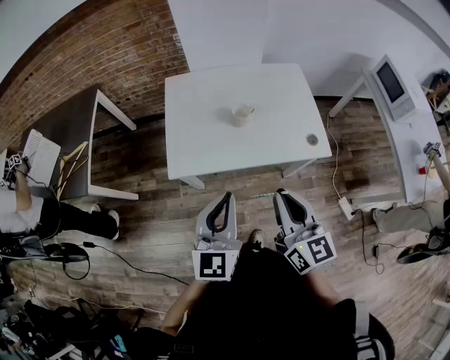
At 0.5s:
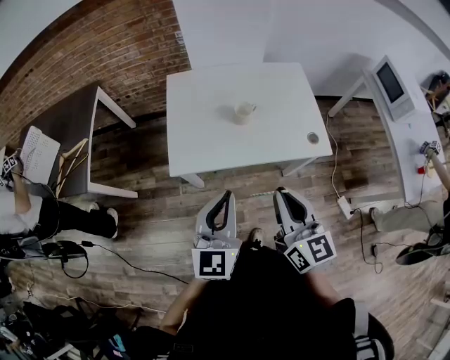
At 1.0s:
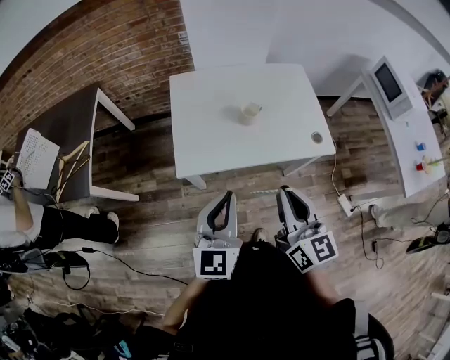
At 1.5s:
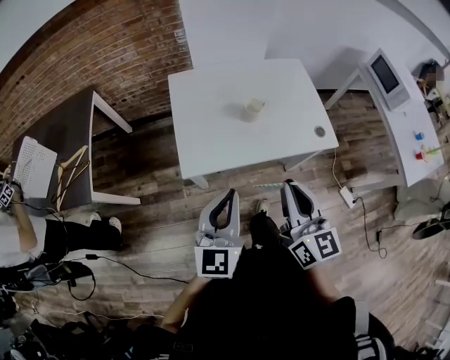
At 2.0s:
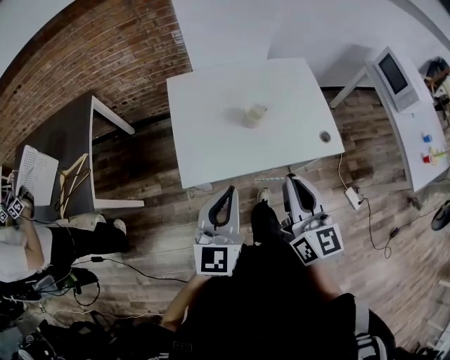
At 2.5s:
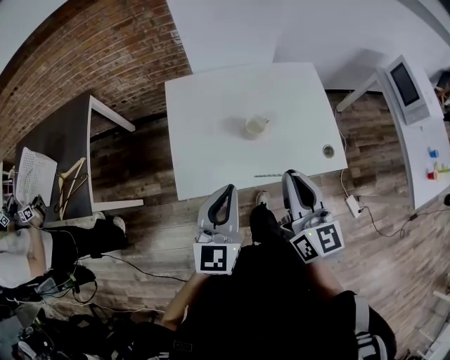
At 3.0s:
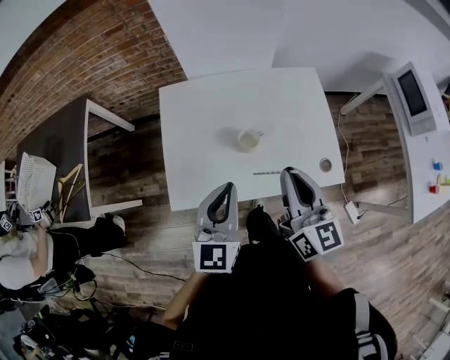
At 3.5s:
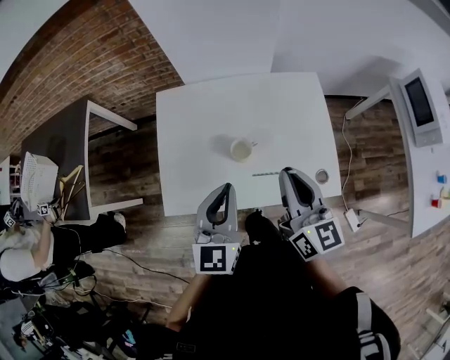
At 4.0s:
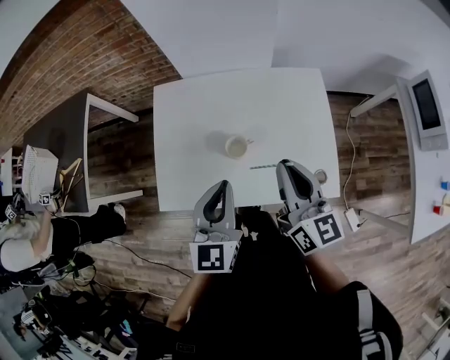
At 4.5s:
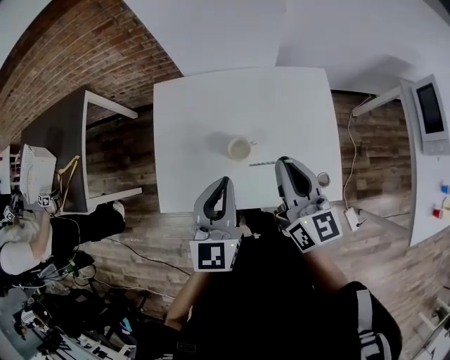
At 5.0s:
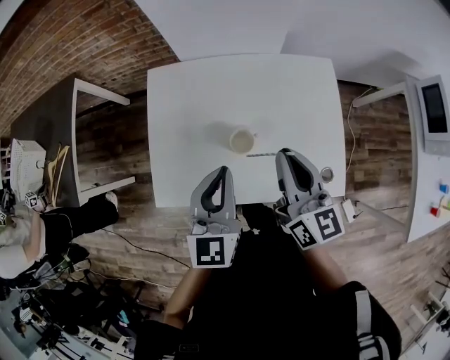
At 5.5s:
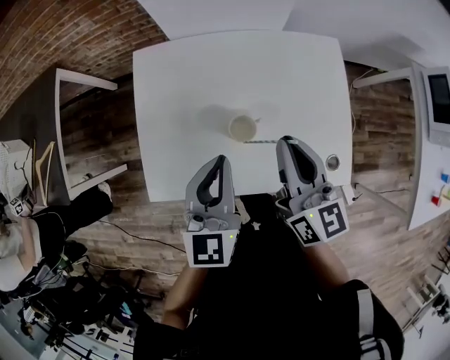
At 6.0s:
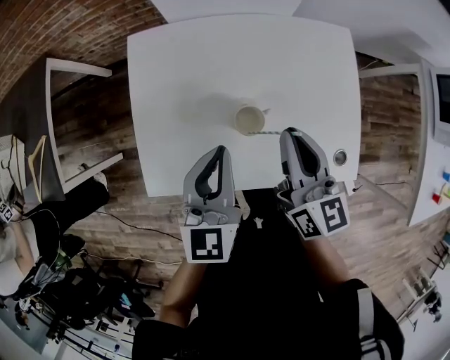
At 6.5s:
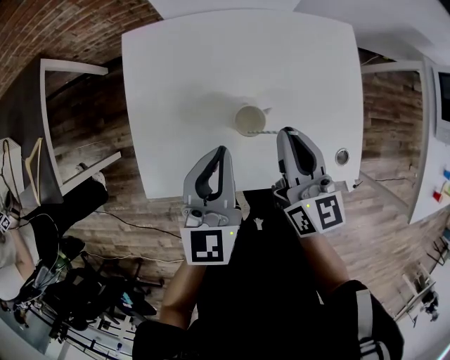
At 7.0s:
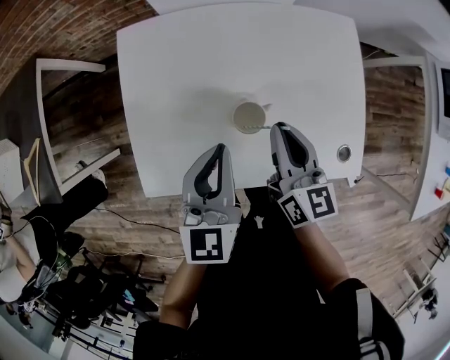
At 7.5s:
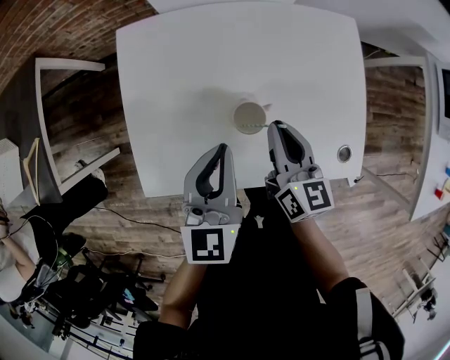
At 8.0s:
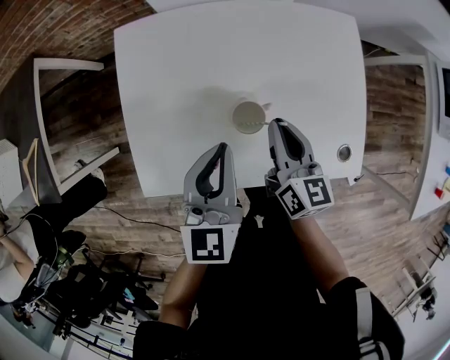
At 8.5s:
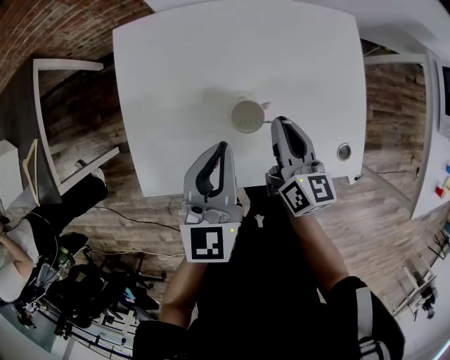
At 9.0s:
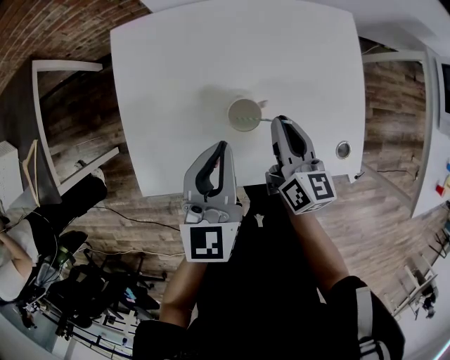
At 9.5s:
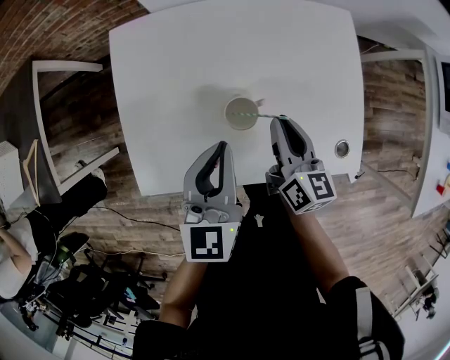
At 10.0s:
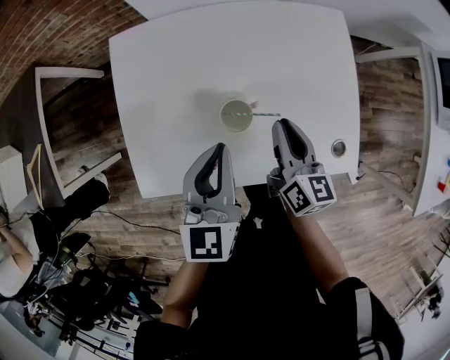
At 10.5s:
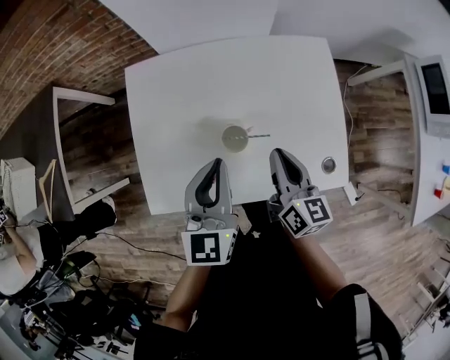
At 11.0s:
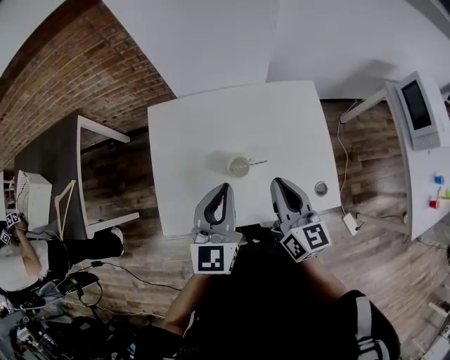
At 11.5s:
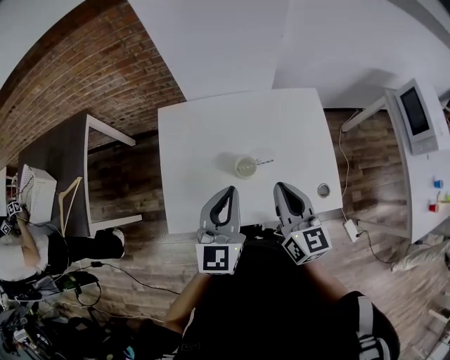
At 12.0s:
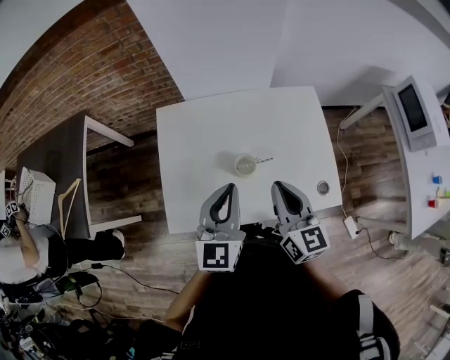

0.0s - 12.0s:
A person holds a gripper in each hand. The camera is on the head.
0.0s - 2.0s: The left gripper heads to the left and forward, covering approximately 10 cm; the right gripper moves forward and to the left, about 10 cm.
2.0s - 4.0s: Both grippers travel together forward and to the right, roughly 25 cm.
4.0s - 6.0s: Both grippers move downward, forward and to the left, some 15 cm.
6.0s - 8.0s: The right gripper shifts roughly 10 cm downward.
8.0s - 10.0s: The grippers stay close to where they were, moving slightly.
10.0s - 12.0s: The left gripper goes some 10 cm upward and backward. The right gripper heads upward and backward, covering about 20 cm.

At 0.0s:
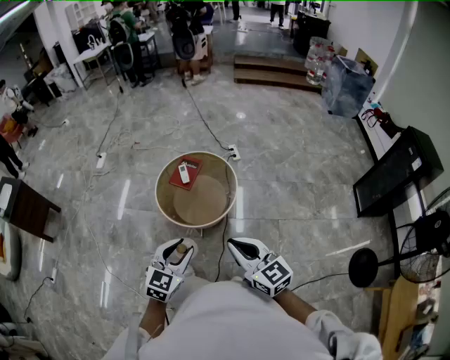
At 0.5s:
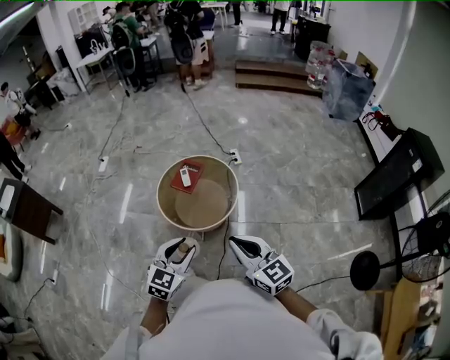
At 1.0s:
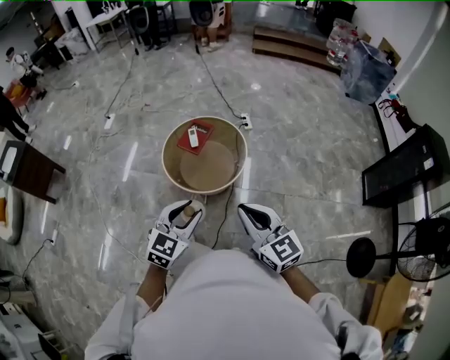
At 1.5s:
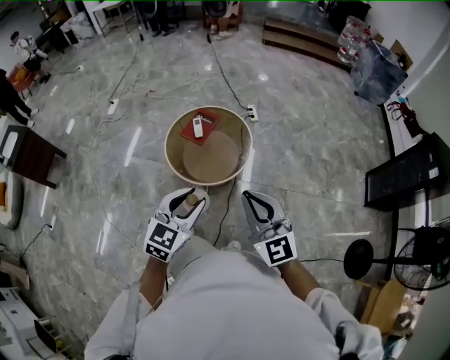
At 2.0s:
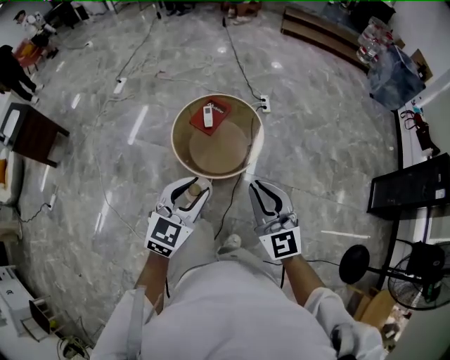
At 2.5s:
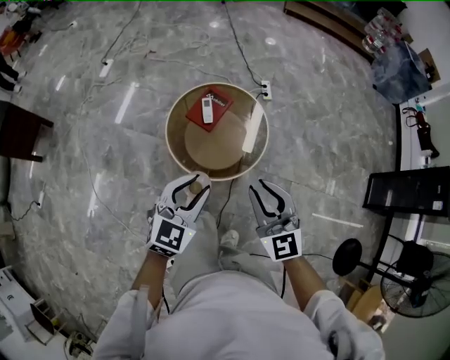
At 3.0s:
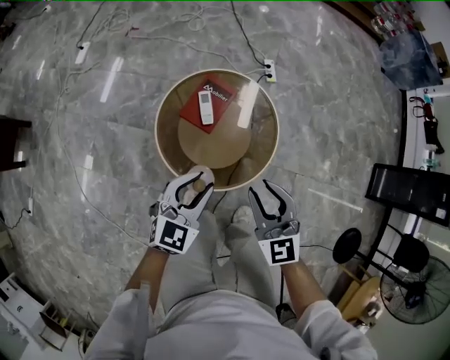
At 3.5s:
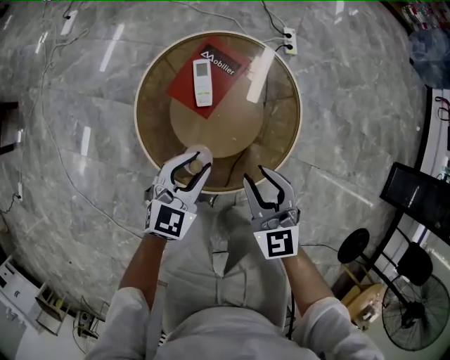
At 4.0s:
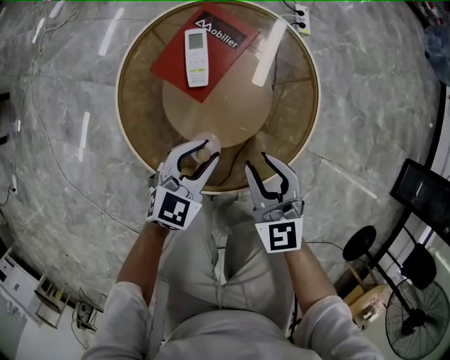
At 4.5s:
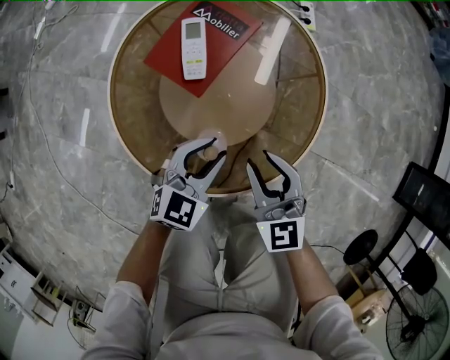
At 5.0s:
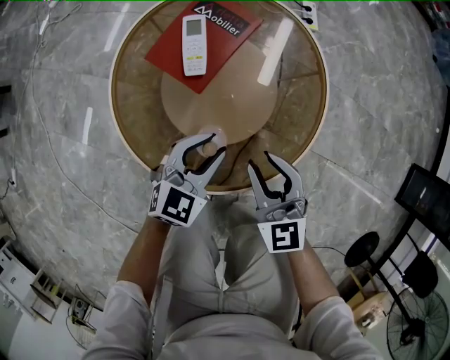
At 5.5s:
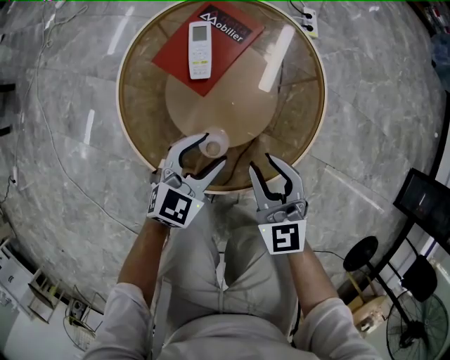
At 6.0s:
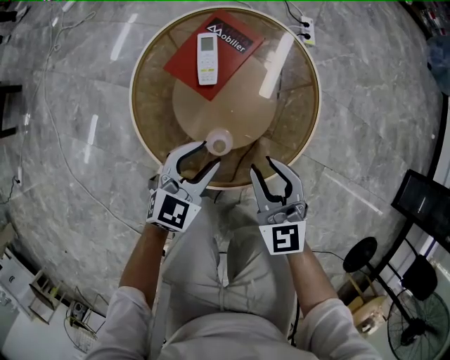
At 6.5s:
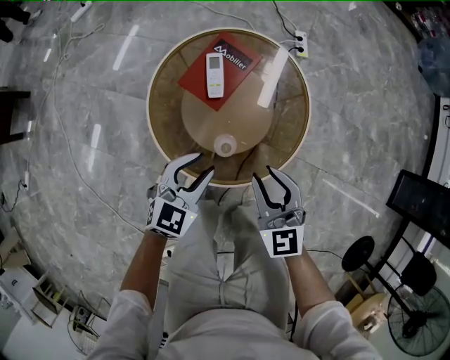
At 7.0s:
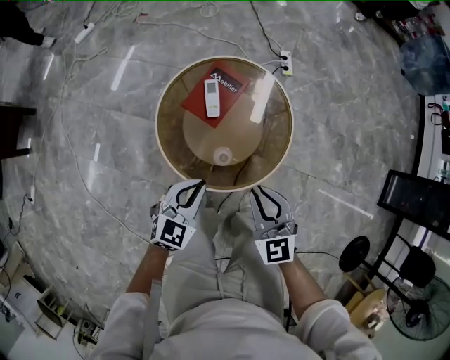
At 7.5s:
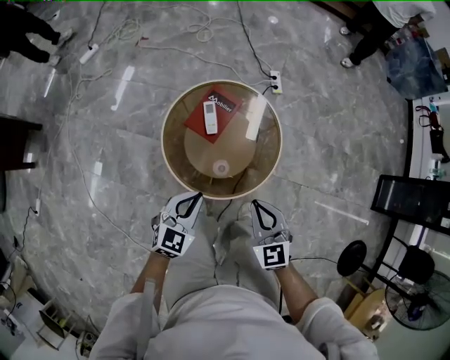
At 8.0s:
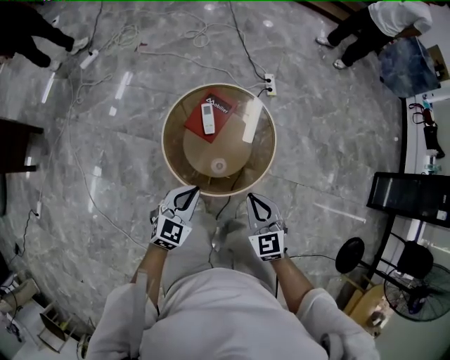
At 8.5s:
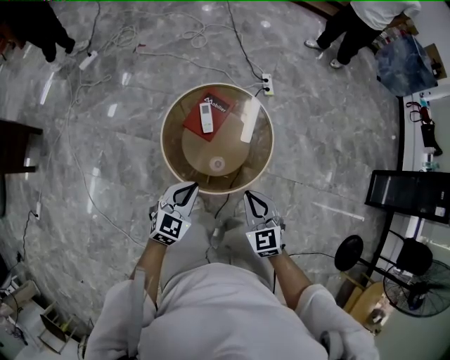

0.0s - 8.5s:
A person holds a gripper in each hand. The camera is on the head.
0.0s - 2.0s: Both grippers move forward, approximately 10 cm. The right gripper changes its angle by some 20 degrees.
2.0s - 4.0s: Both grippers travel together downward and forward, about 60 cm. The right gripper turns by approximately 20 degrees, and opens up.
4.0s - 6.5s: The grippers both shift upward by approximately 10 cm. The left gripper opens, then closes again.
6.5s - 8.5s: The right gripper is displaced upward and backward by roughly 15 cm, and closes up. Meanwhile the left gripper is displaced upward by roughly 20 cm, and closes up.

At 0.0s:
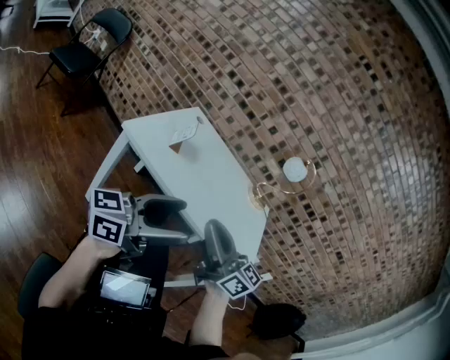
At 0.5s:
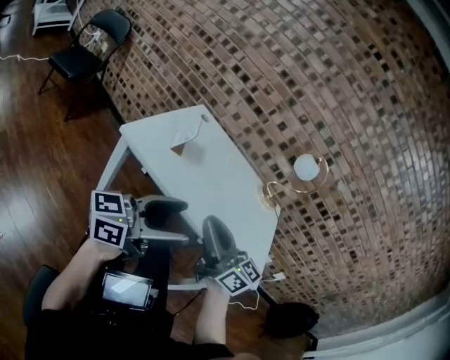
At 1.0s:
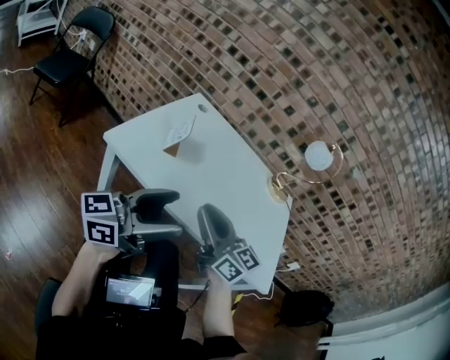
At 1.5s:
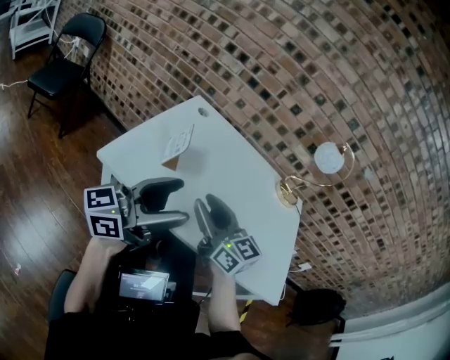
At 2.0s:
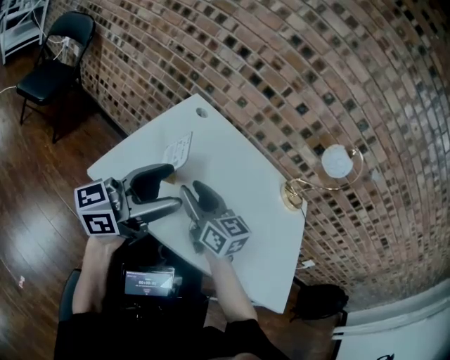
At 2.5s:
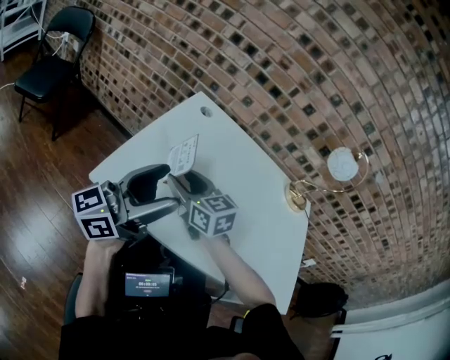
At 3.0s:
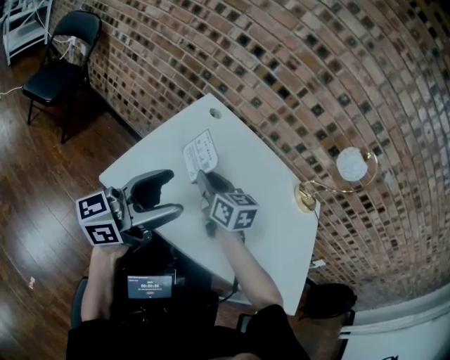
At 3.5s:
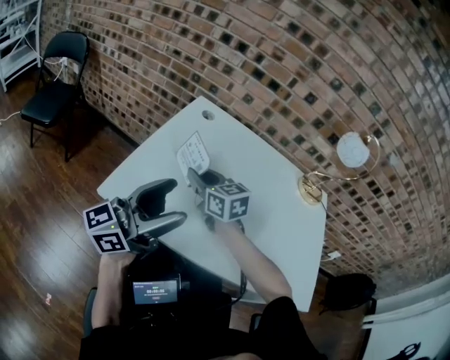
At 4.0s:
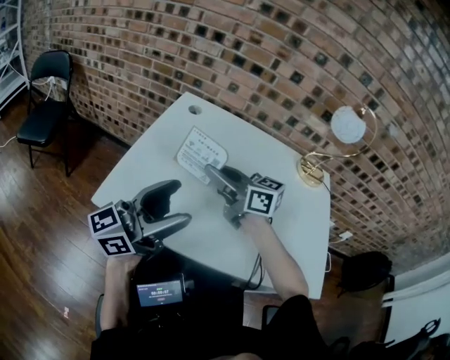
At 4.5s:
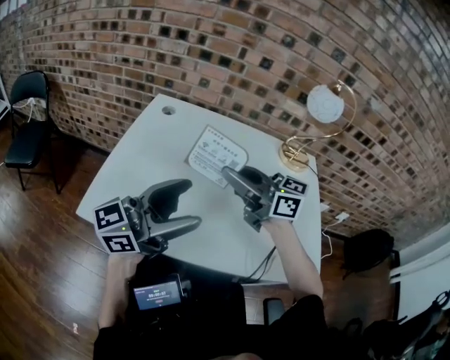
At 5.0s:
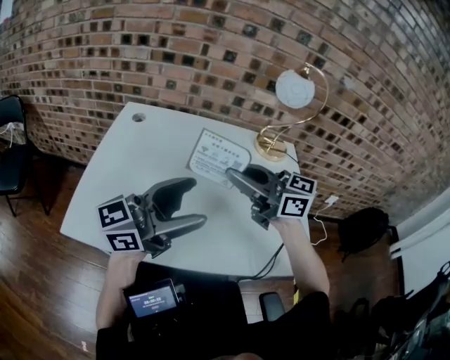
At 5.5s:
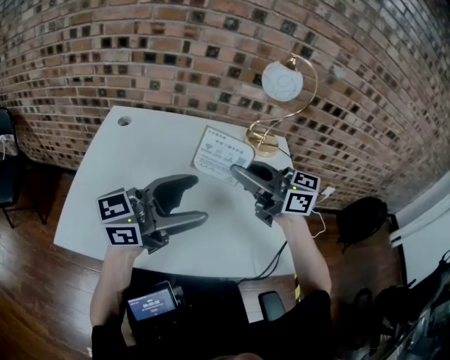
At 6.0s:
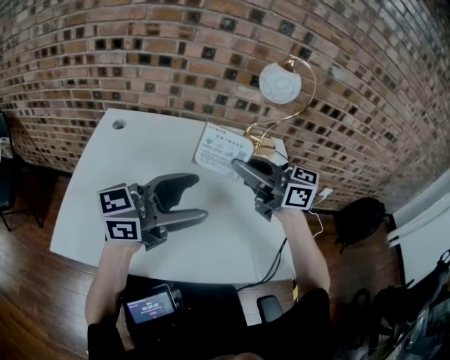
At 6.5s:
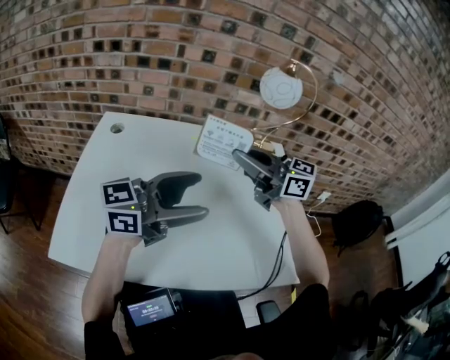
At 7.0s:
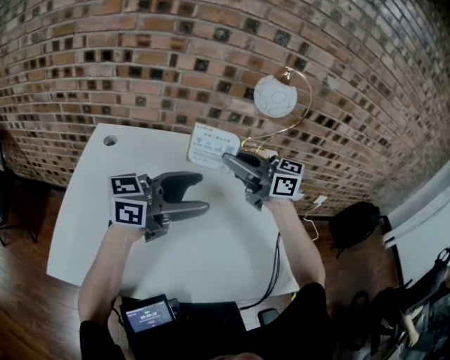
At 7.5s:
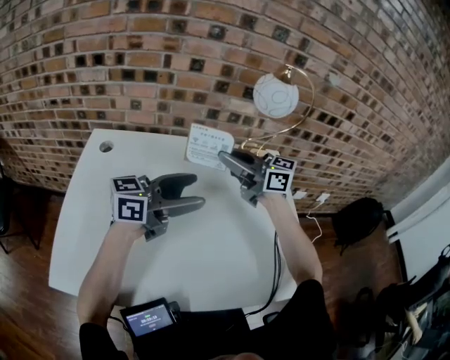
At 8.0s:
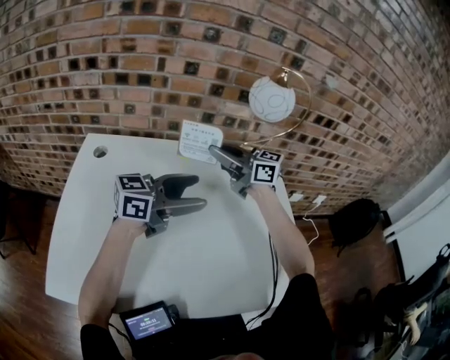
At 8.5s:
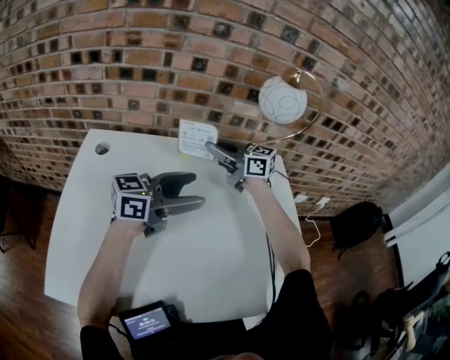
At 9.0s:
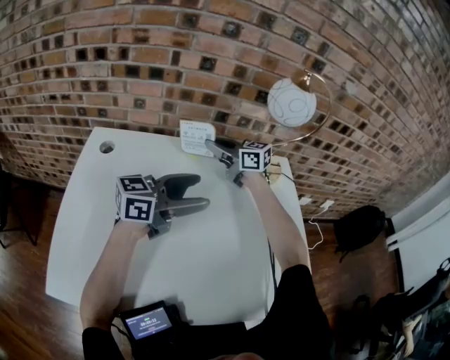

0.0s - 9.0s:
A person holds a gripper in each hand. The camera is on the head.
0.0s - 2.0s: The grippers both shift forward by some 30 cm. The right gripper changes its angle by about 20 degrees, and opens.
2.0s - 4.5s: The right gripper changes place by about 15 cm, rotates roughly 20 degrees, and closes its fingers, while the left gripper moves about 10 cm.
4.5s - 7.0s: The right gripper shifts by some 20 cm. The left gripper changes place by some 20 cm, and rotates approximately 30 degrees.
7.0s - 9.0s: The left gripper shifts by roughly 10 cm. The right gripper ends up roughly 25 cm from where it was.
